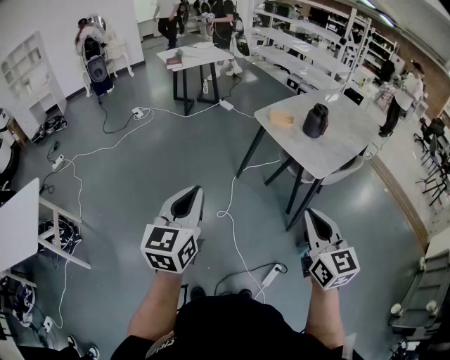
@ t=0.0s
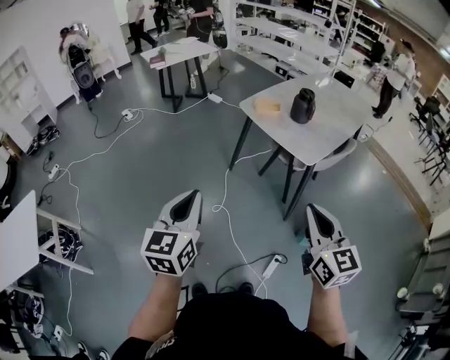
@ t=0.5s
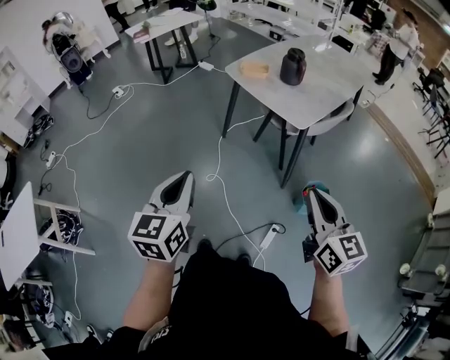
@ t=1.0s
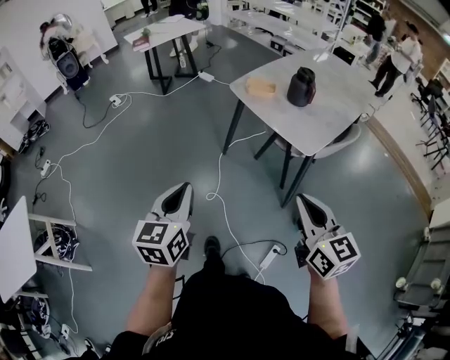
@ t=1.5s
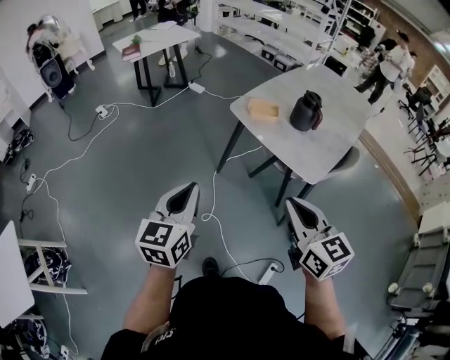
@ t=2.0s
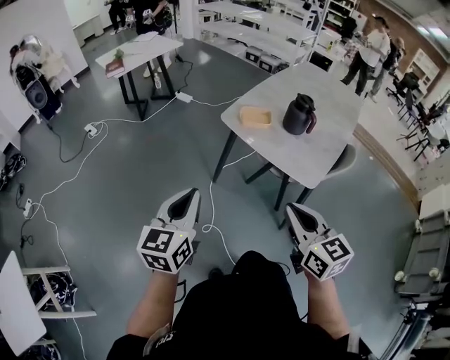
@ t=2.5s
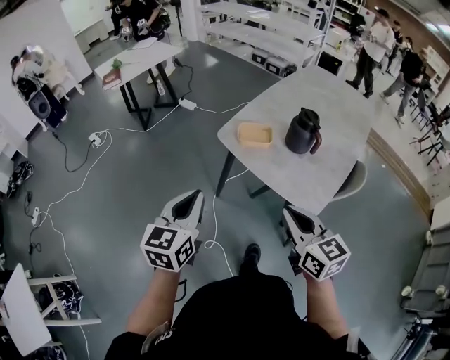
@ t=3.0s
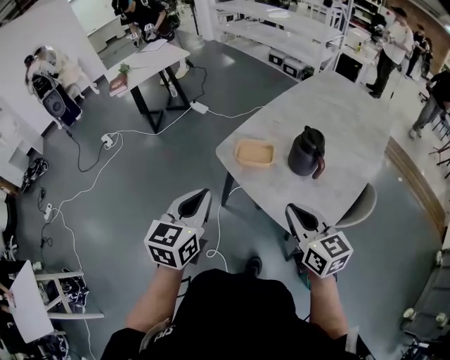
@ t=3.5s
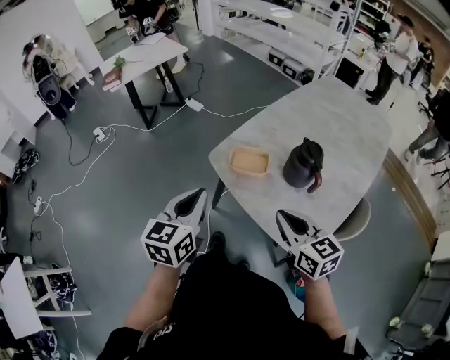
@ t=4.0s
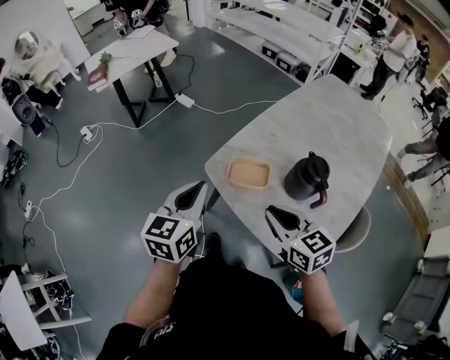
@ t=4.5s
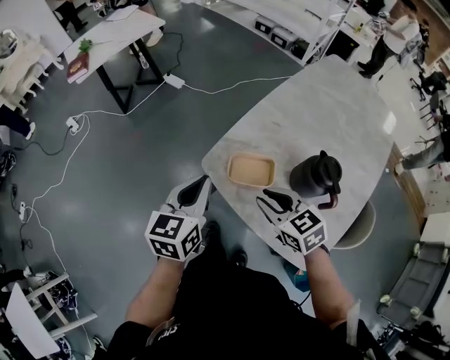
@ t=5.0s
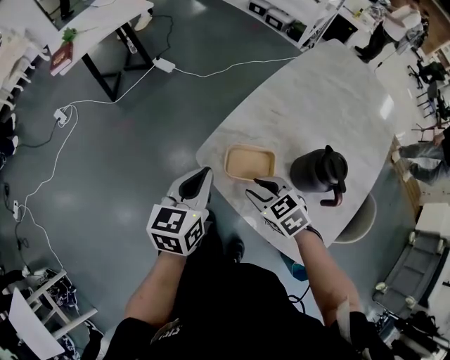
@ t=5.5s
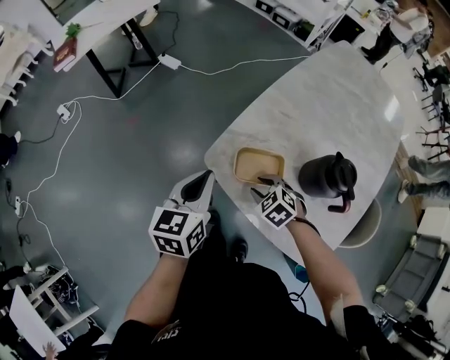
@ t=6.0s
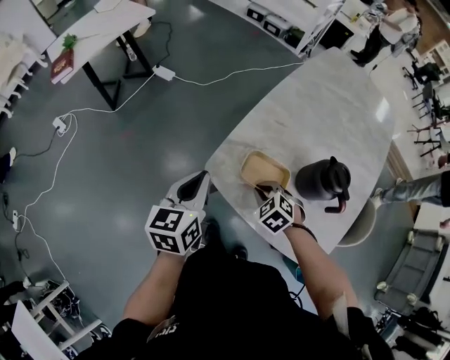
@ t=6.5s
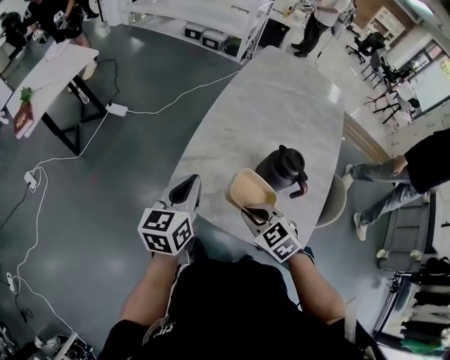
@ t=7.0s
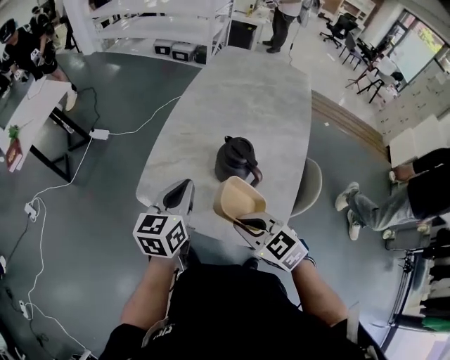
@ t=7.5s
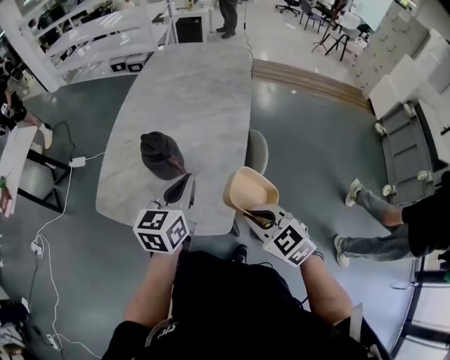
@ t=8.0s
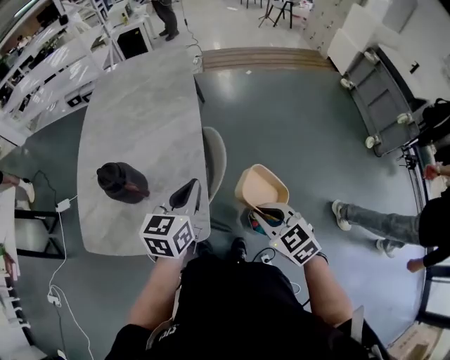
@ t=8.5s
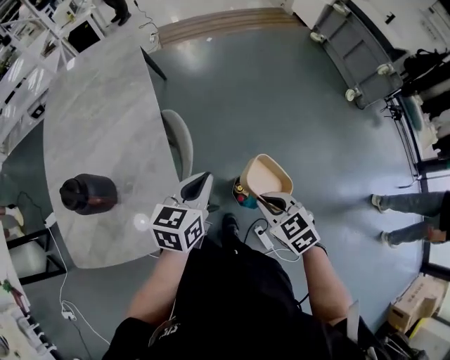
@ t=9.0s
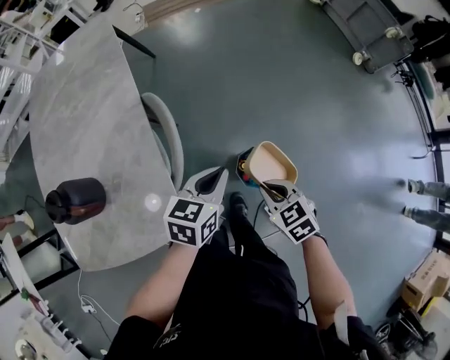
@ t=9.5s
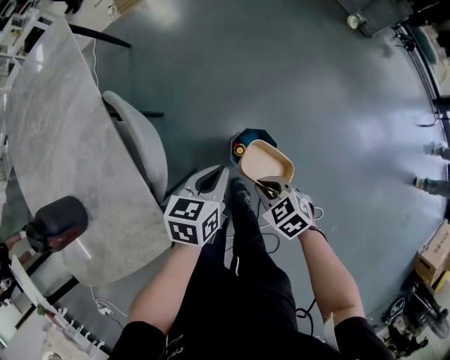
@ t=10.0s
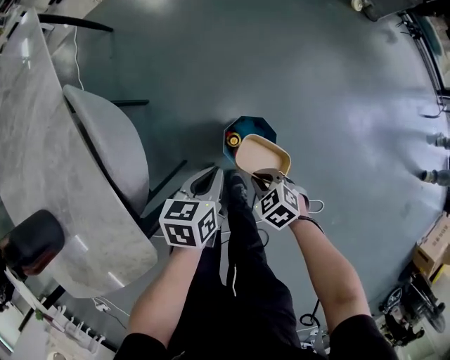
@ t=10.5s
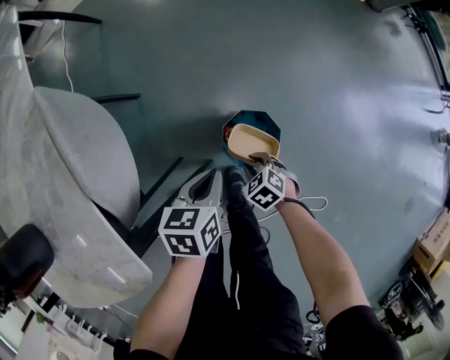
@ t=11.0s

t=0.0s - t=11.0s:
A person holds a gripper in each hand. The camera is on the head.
t=0.0s - t=2.0s: Both grippers travel together forward, approximately 20 cm.
t=2.0s - t=3.5s: Both grippers move forward and to the right, about 30 cm.
t=3.5s - t=5.5s: The two grippers go approximately 30 cm forward and downward. The right gripper angles its fingers downward, by about 40 degrees, and opens up.
t=5.5s - t=7.5s: The right gripper moves backward, upward and to the right, some 20 cm, and closes up; the left gripper heads to the right, covering approximately 15 cm, and rotates some 20 degrees.
t=7.5s - t=9.0s: Both grippers are carried about 50 cm. The right gripper swivels roughly 50 degrees; the left gripper turns by roughly 50 degrees.
t=9.0s - t=11.0s: Both grippers move downward, some 40 cm. The right gripper turns by roughly 30 degrees. Meanwhile the left gripper rotates roughly 30 degrees.

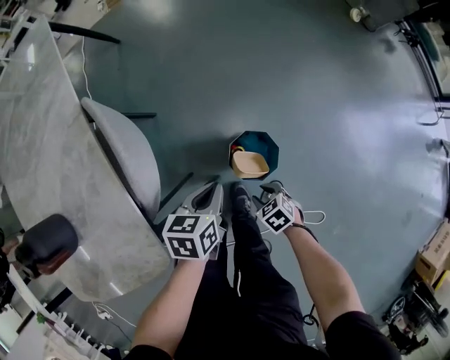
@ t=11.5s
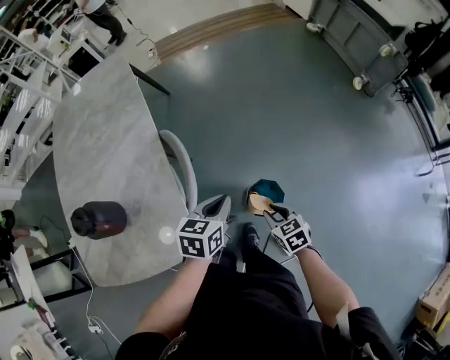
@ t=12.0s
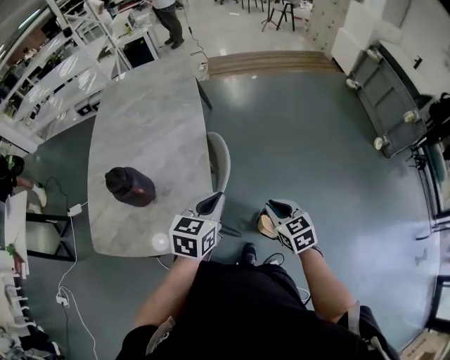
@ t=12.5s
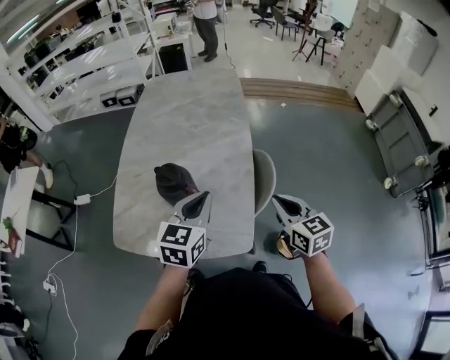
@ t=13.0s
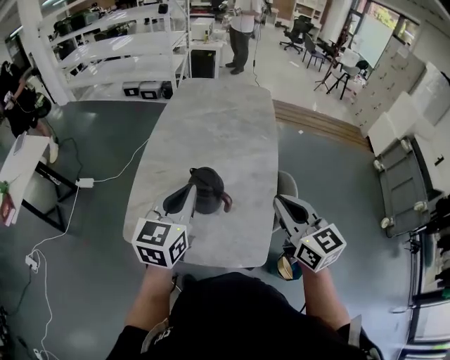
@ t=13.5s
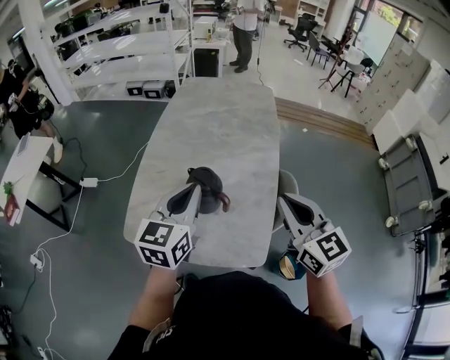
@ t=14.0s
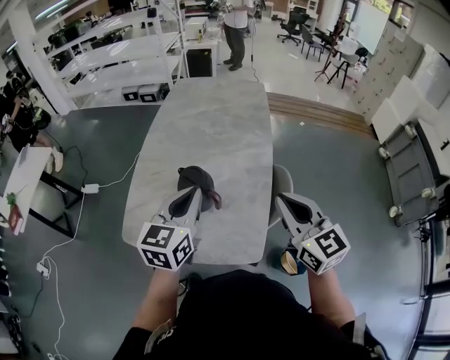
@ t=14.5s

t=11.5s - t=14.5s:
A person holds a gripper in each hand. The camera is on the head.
t=11.5s - t=13.0s: The left gripper goes approximately 50 cm upward and to the left, and turns by roughly 50 degrees. The right gripper heads upward, covering about 50 cm, tips its fingers upward by roughly 50 degrees, and closes.
t=13.0s - t=14.5s: The left gripper travels to the left and upward by some 10 cm. Meanwhile the right gripper heads upward and to the left, covering some 15 cm.

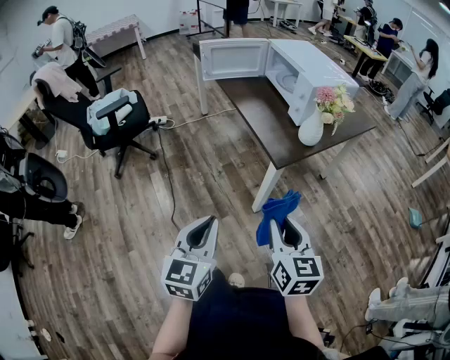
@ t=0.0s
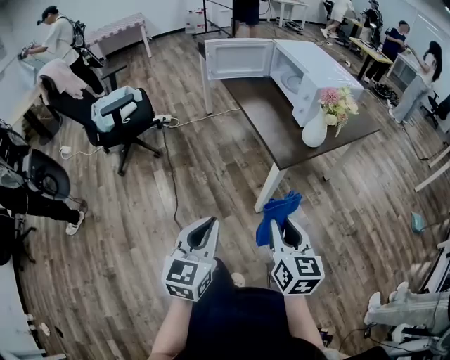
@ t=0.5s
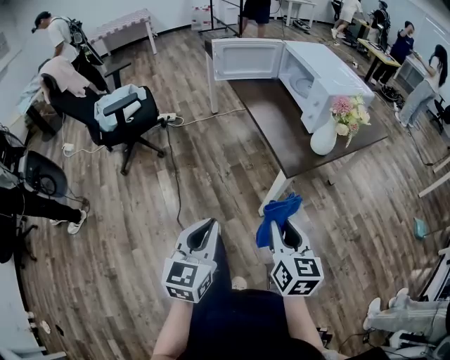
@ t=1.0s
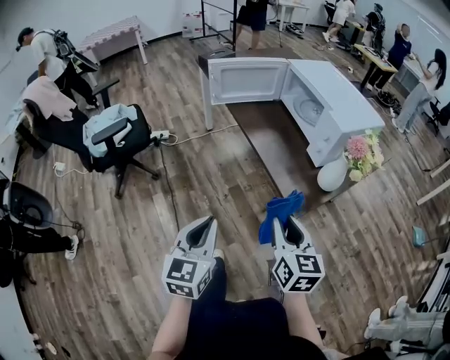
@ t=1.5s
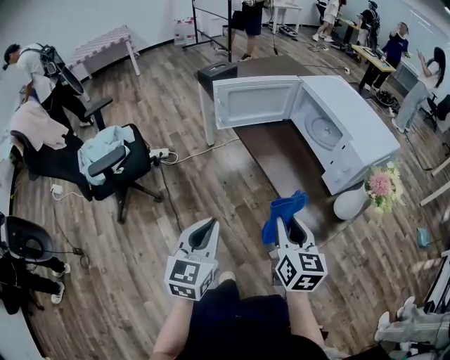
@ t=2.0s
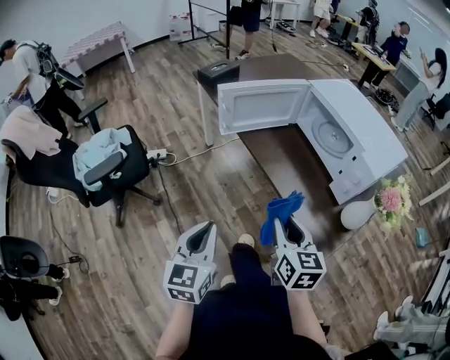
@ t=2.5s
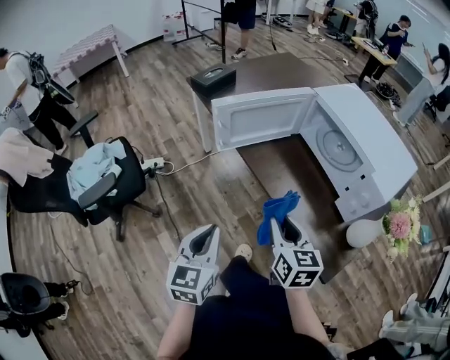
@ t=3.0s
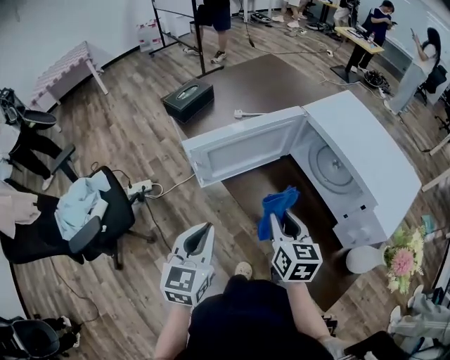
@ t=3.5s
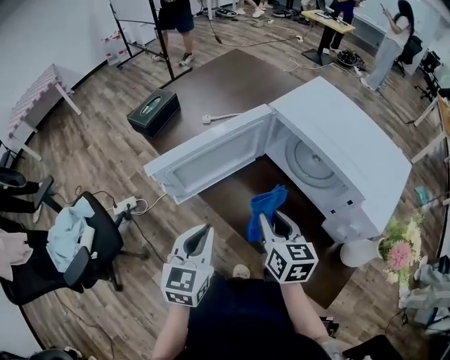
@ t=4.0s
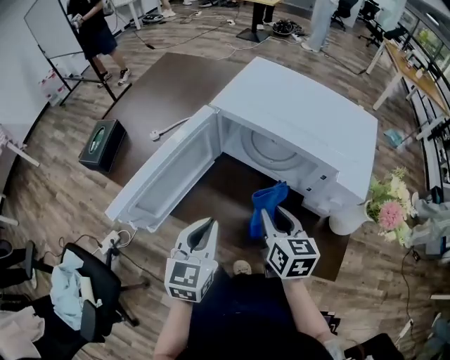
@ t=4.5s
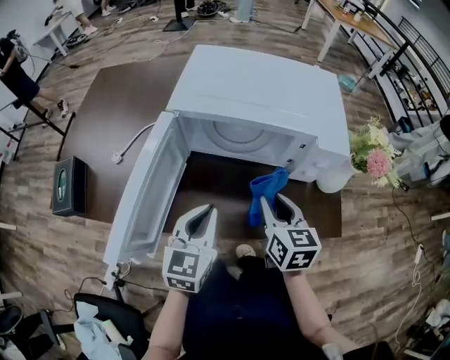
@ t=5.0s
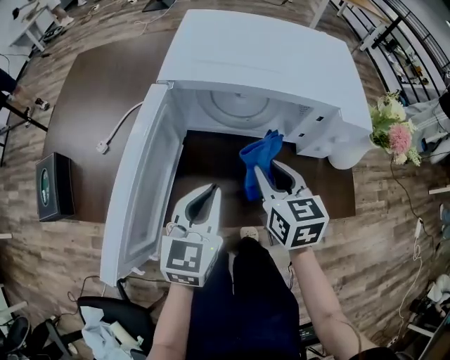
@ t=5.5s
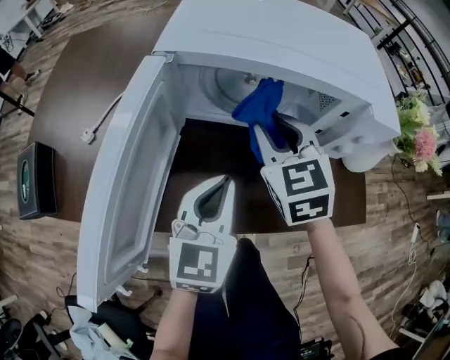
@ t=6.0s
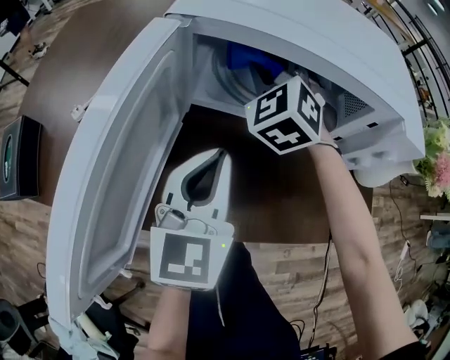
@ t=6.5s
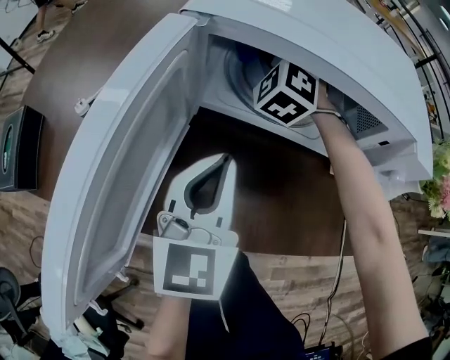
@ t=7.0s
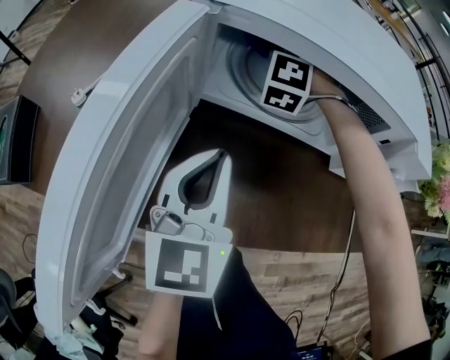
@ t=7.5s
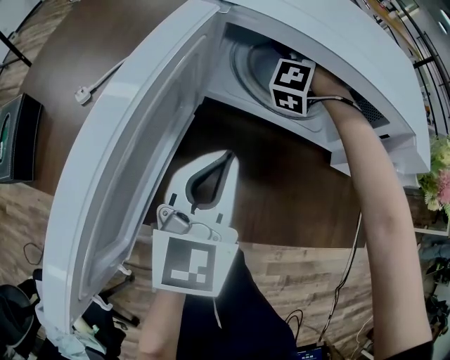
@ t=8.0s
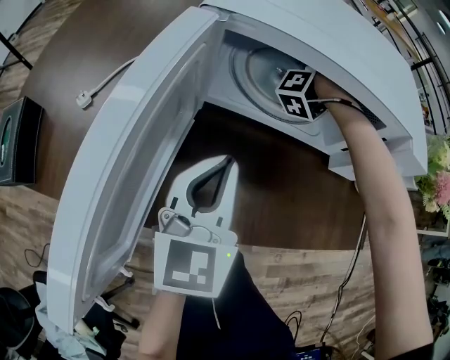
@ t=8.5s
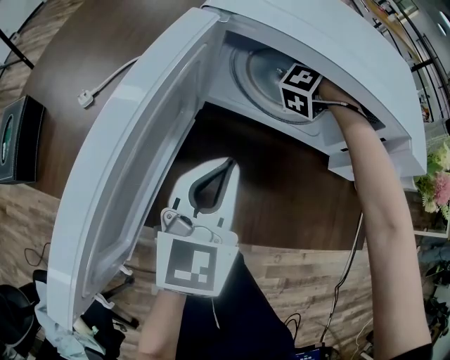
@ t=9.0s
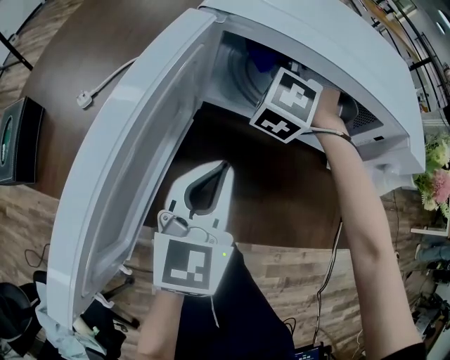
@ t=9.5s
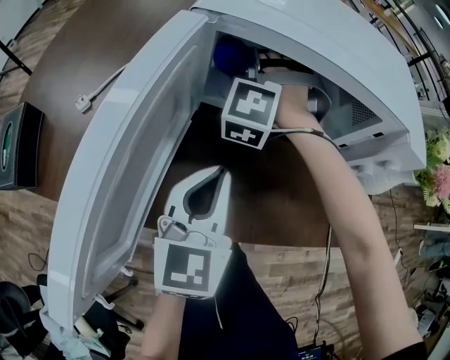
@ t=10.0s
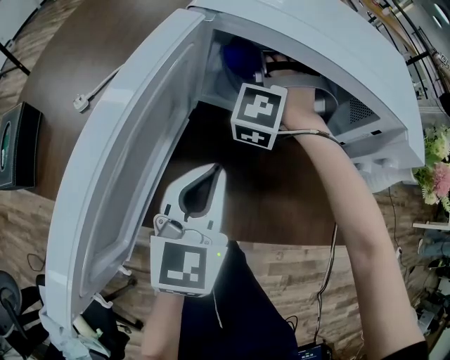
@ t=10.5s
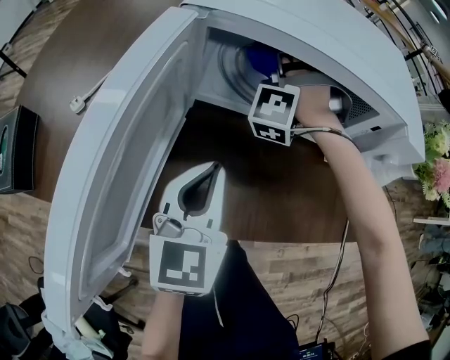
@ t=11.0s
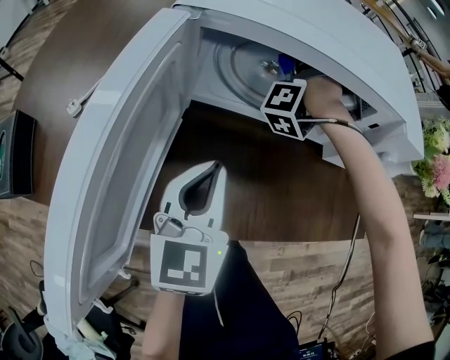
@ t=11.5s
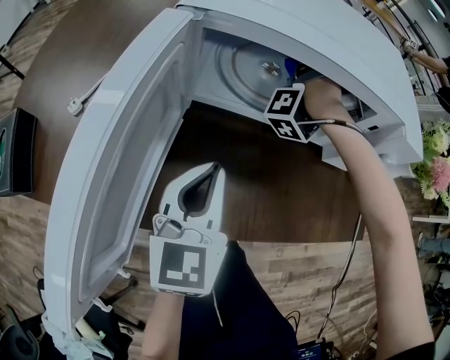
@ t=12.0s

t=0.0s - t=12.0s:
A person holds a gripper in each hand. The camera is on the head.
t=0.0s - t=2.0s: The left gripper ends up roughly 40 cm from where it was.
t=2.0s - t=4.0s: The left gripper ends up some 35 cm from where it was.
t=4.0s - t=6.0s: The left gripper moves roughly 20 cm, and rotates about 50 degrees.

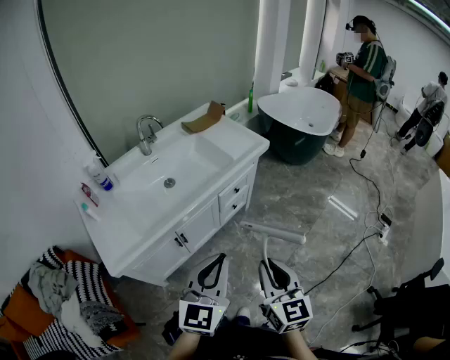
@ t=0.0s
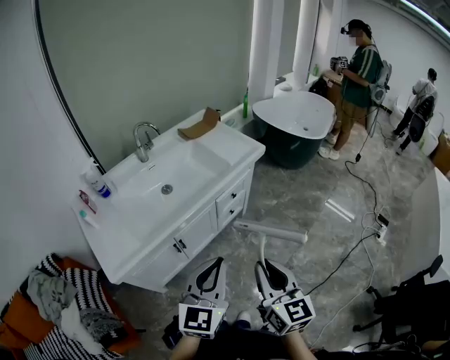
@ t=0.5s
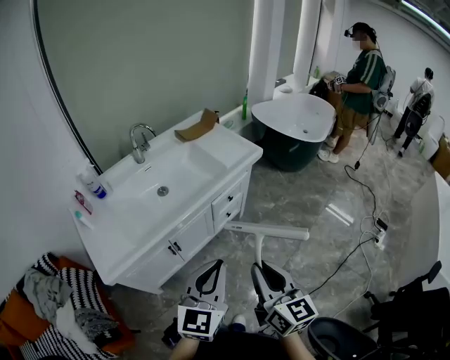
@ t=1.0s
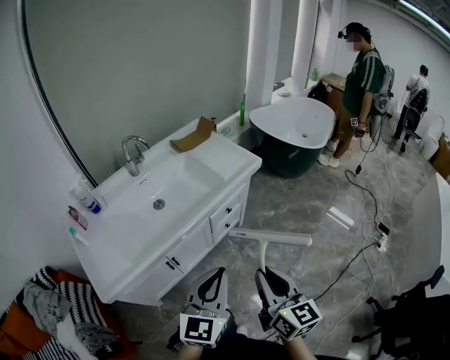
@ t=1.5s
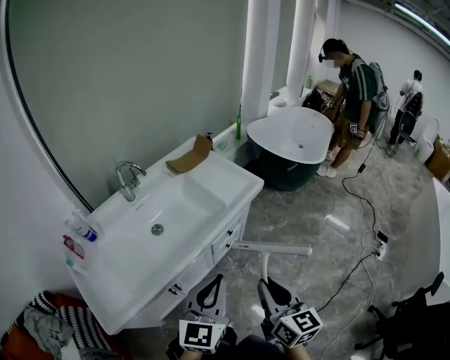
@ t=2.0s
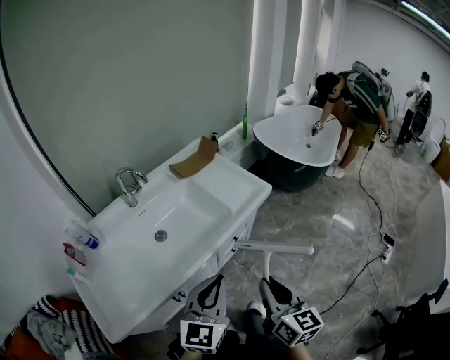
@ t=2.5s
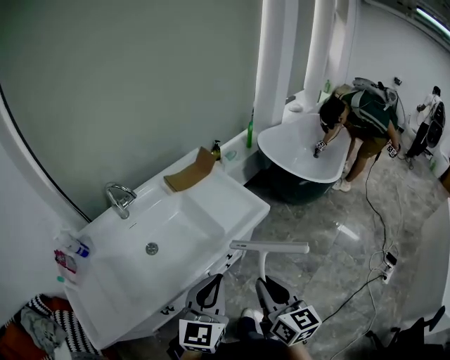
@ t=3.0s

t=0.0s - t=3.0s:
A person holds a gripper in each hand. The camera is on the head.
t=0.0s - t=1.5s: Both grippers move forward, roughly 5 cm.
t=1.5s - t=3.0s: Both grippers move forward, roughly 25 cm.
